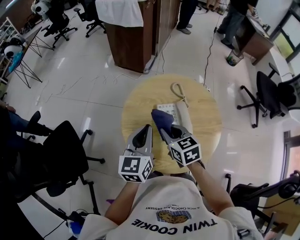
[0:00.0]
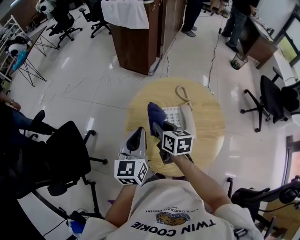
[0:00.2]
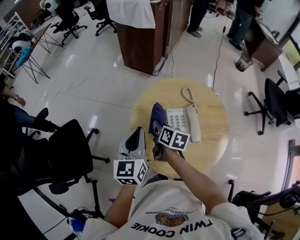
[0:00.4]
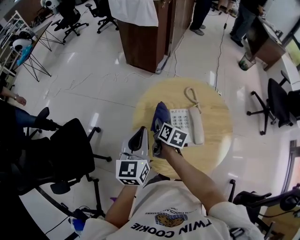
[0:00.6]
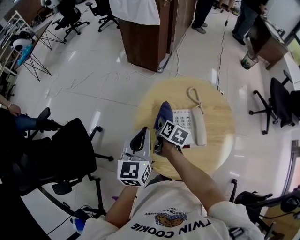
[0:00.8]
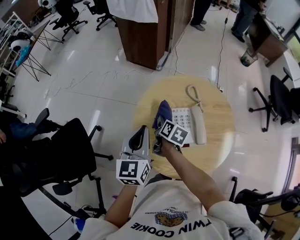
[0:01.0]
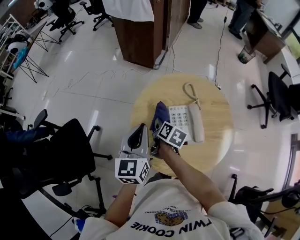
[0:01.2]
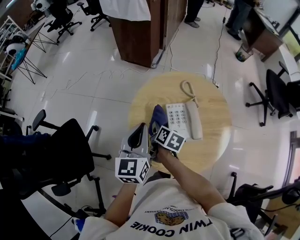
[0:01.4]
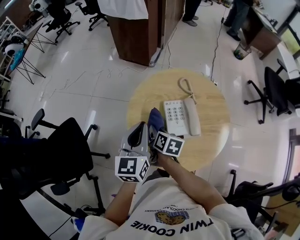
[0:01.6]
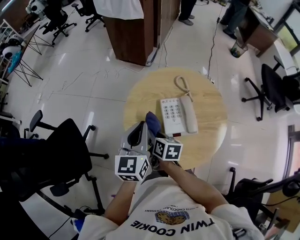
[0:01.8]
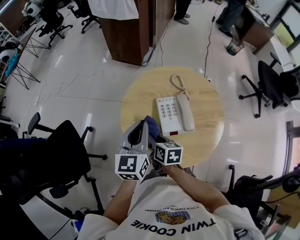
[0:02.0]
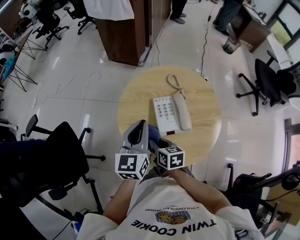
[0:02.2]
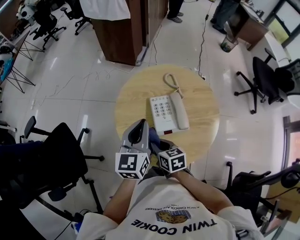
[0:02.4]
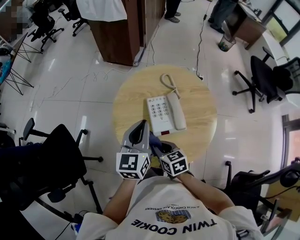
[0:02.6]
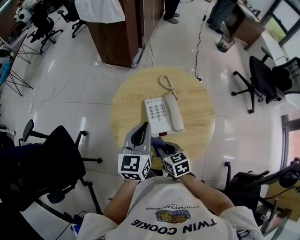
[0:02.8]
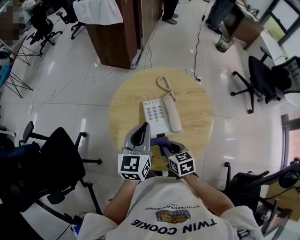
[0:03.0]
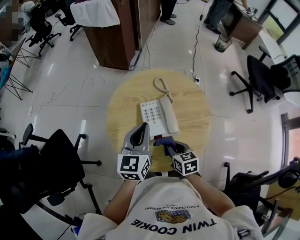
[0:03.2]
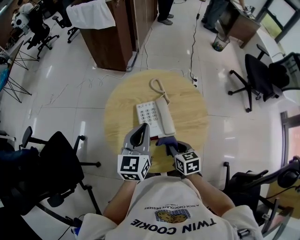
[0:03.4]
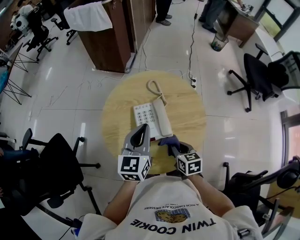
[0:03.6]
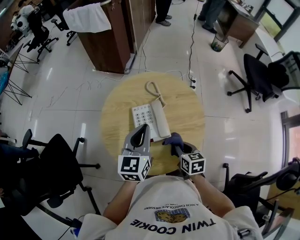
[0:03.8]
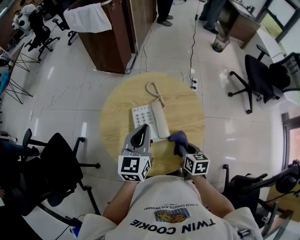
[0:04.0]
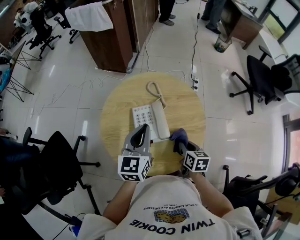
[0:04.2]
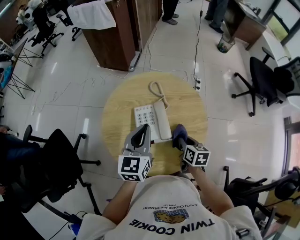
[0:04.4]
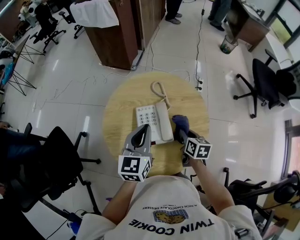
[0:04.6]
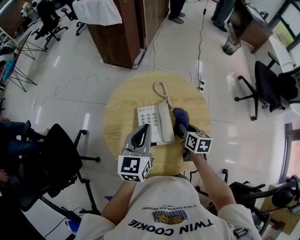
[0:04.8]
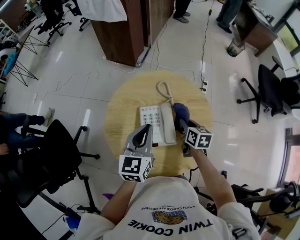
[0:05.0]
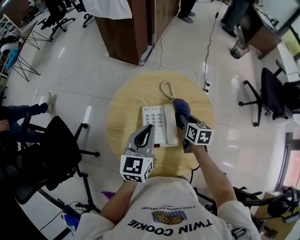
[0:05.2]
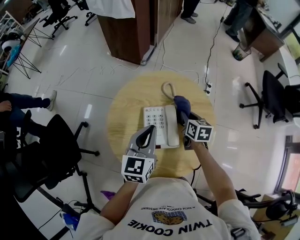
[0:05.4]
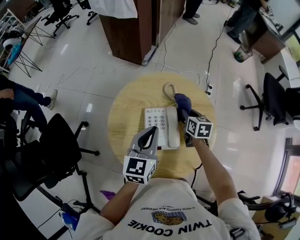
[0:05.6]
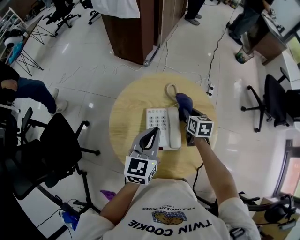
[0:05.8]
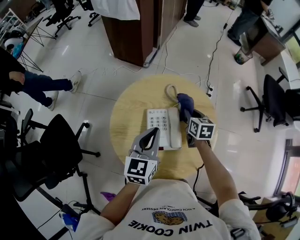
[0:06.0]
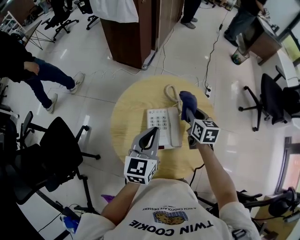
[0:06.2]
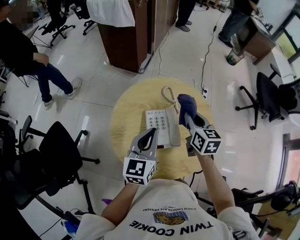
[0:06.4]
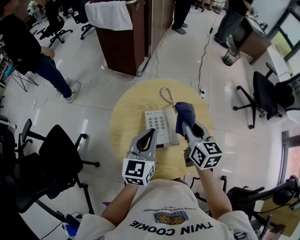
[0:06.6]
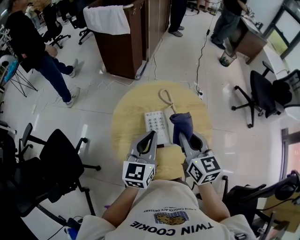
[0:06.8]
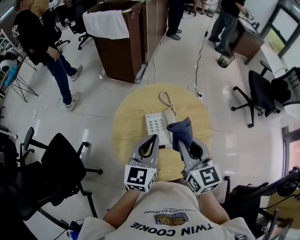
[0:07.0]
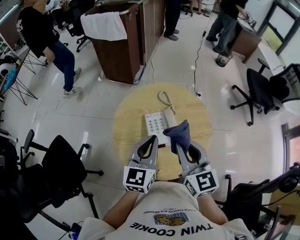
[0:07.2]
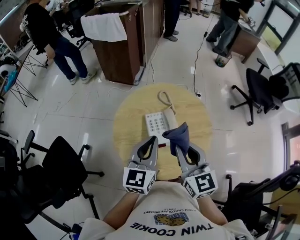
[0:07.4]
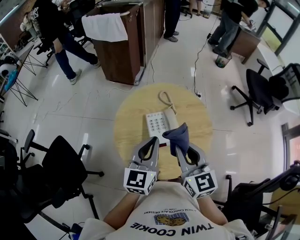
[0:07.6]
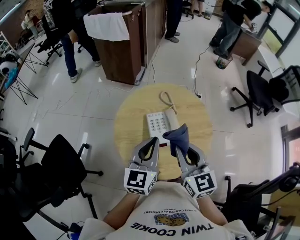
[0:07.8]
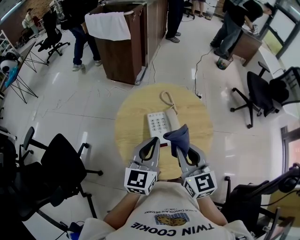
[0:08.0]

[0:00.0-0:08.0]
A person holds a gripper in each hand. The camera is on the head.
0:00.0 to 0:01.6: The right gripper shifts approximately 10 cm downward and to the left, and rolls clockwise, seen from behind, by approximately 40 degrees.
0:01.6 to 0:03.2: The right gripper shifts roughly 20 cm to the right and backward, and rotates approximately 30 degrees; the left gripper moves to the right, about 10 cm.
0:03.2 to 0:04.8: The right gripper goes roughly 15 cm forward and to the right.
0:04.8 to 0:06.4: The right gripper is displaced upward by approximately 10 cm.
0:06.4 to 0:08.0: The right gripper moves backward and upward, about 20 cm, and changes its angle by approximately 20 degrees. Meanwhile the left gripper moves backward, roughly 5 cm.

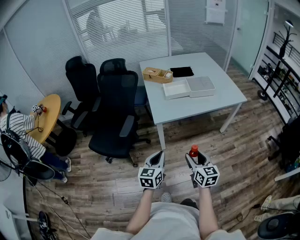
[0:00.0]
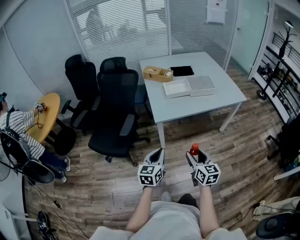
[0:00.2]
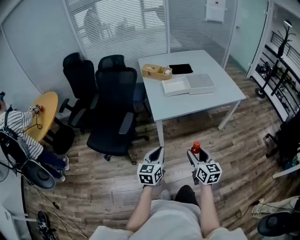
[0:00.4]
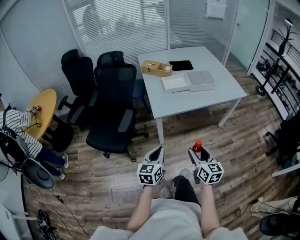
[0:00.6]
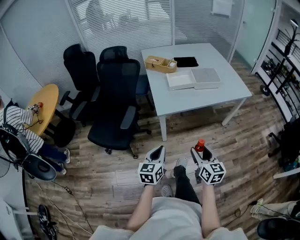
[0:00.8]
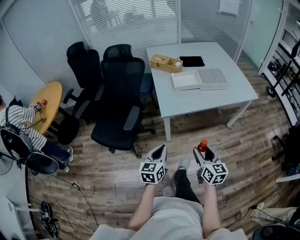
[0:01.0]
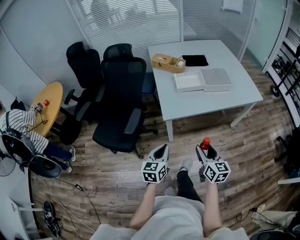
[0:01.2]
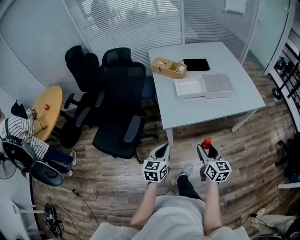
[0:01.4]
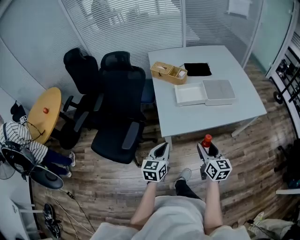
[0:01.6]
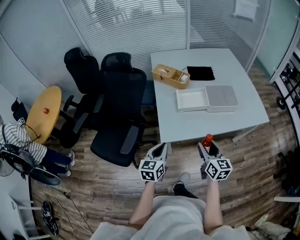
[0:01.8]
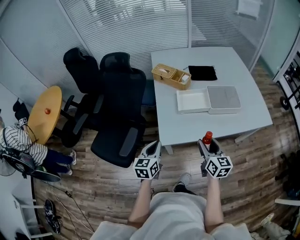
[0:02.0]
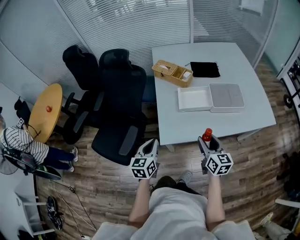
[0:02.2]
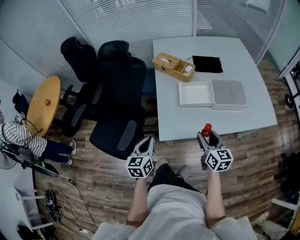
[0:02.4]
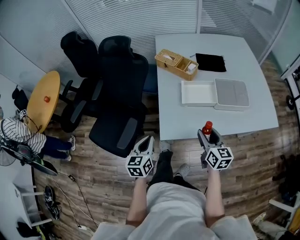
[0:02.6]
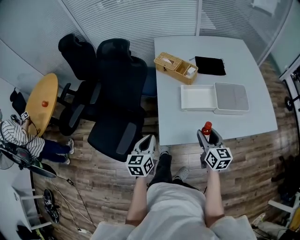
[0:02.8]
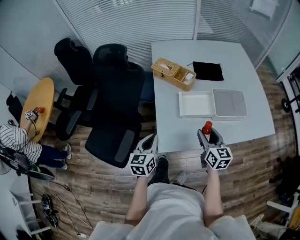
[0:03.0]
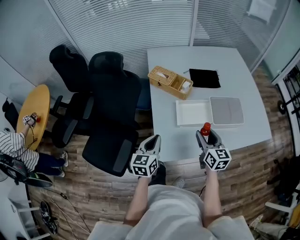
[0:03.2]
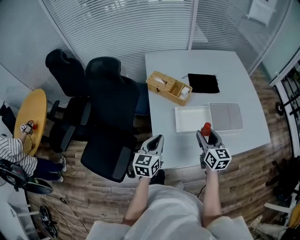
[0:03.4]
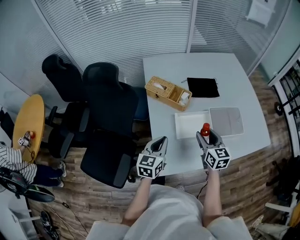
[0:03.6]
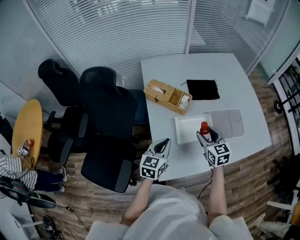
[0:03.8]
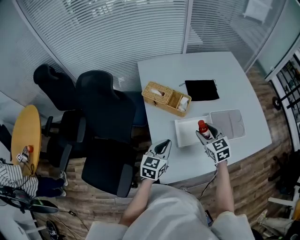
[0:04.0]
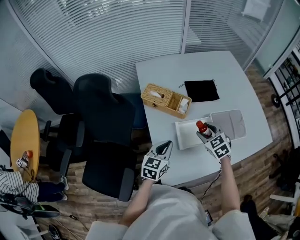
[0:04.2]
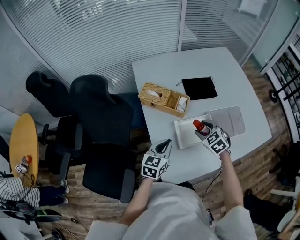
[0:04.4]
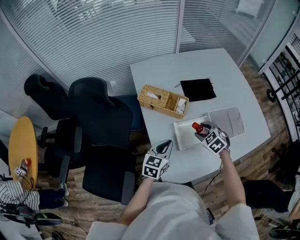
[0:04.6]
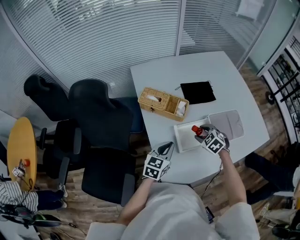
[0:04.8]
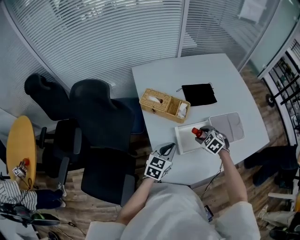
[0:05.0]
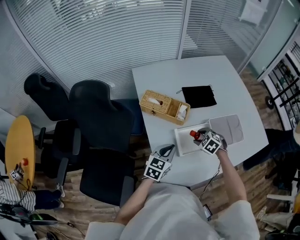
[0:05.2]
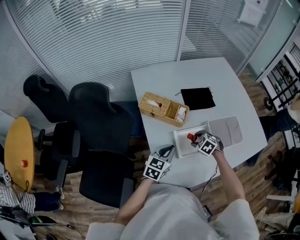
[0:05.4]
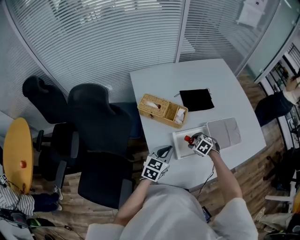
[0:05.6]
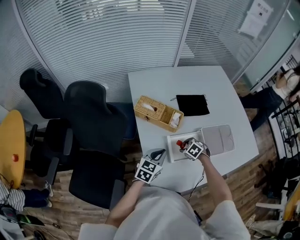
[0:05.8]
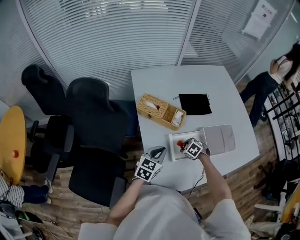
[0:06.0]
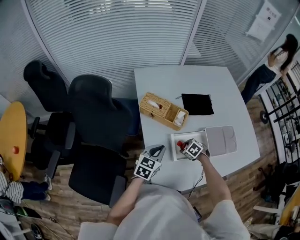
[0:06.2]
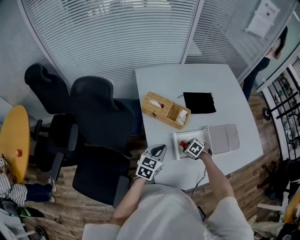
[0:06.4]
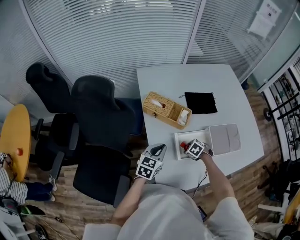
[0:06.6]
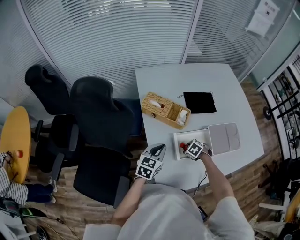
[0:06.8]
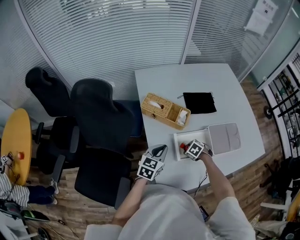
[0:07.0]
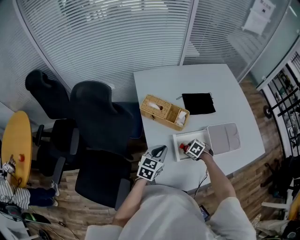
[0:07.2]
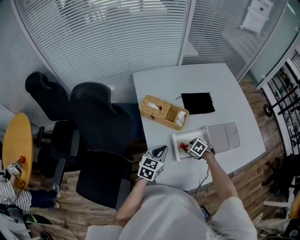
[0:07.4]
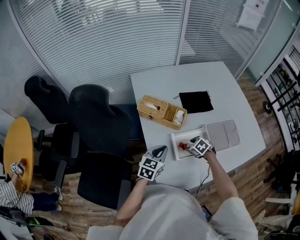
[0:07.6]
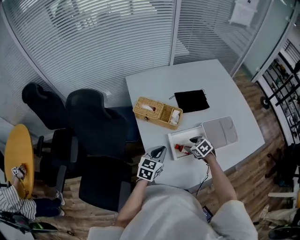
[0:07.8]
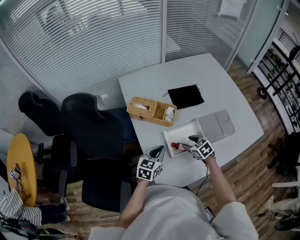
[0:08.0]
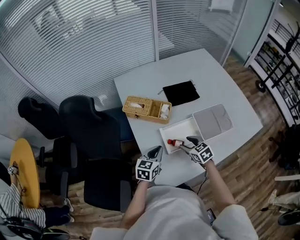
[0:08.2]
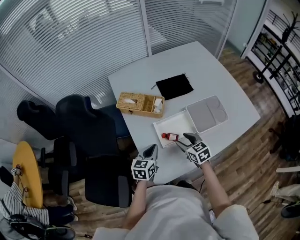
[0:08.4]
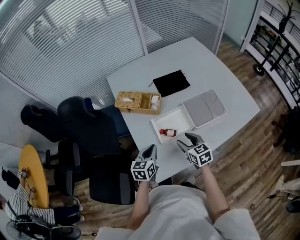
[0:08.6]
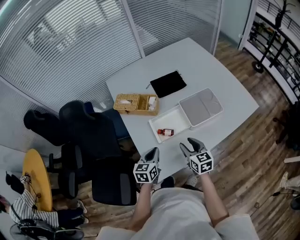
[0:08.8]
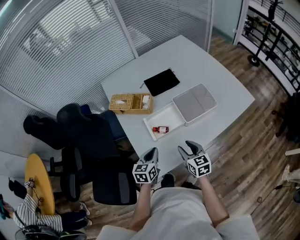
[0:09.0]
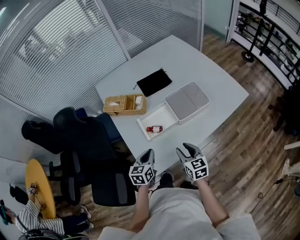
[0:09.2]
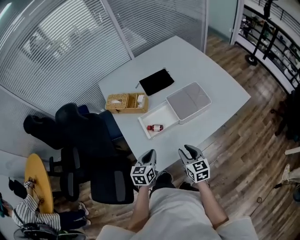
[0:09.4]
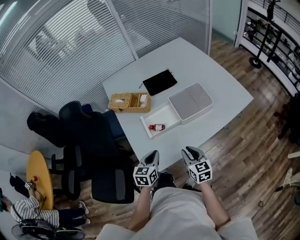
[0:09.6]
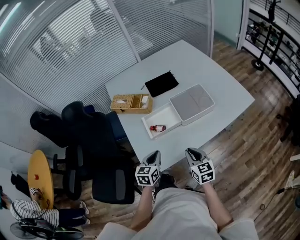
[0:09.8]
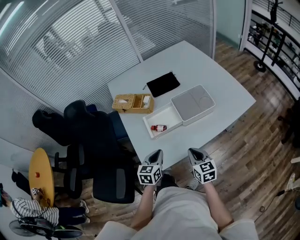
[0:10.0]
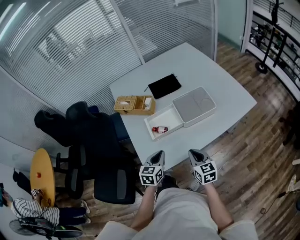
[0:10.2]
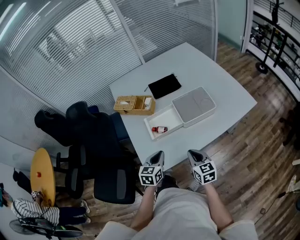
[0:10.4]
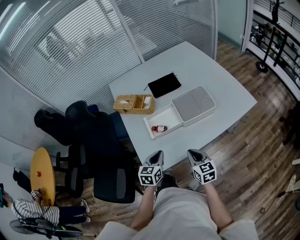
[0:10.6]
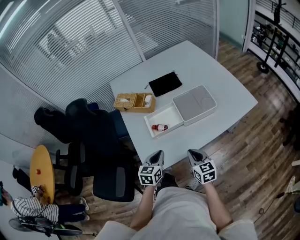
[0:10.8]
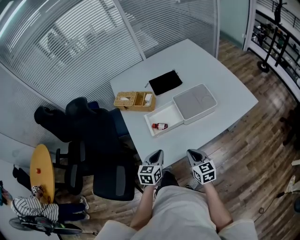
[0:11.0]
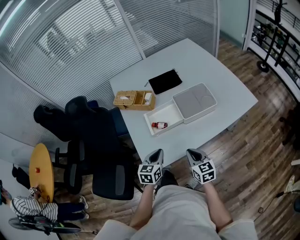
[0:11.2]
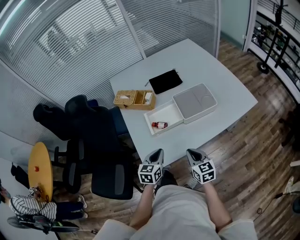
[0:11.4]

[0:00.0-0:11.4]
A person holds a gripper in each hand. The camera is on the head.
0:00.0 to 0:01.4: The two grippers go about 15 cm forward.
0:01.4 to 0:02.8: The two grippers go approximately 20 cm forward.
0:02.8 to 0:04.2: Both grippers move forward, roughly 25 cm. The left gripper turns by about 30 degrees, while the right gripper turns by approximately 40 degrees.
0:04.2 to 0:05.6: The right gripper travels downward by roughly 15 cm, and swivels roughly 30 degrees.
0:05.6 to 0:07.2: The right gripper travels downward by approximately 5 cm.
0:07.2 to 0:08.6: The right gripper travels upward by roughly 15 cm, and tips its fingers upward by some 40 degrees. The left gripper changes place by some 10 cm.
0:08.6 to 0:10.0: The left gripper is displaced to the right and backward by approximately 15 cm, while the right gripper heads backward and to the right, covering roughly 15 cm, and closes its fingers.
0:10.0 to 0:11.4: The grippers stay close to where they were, moving slightly.

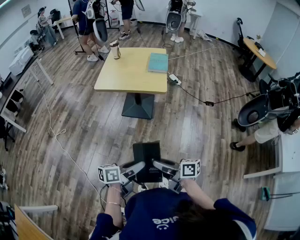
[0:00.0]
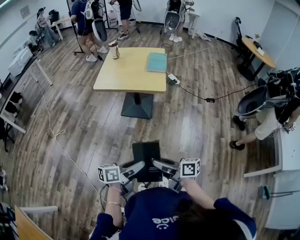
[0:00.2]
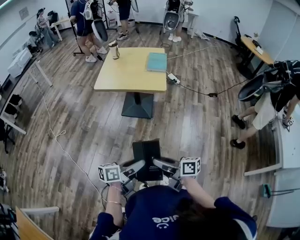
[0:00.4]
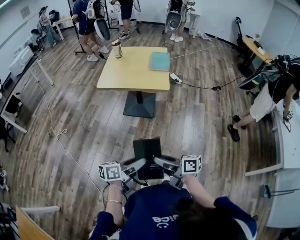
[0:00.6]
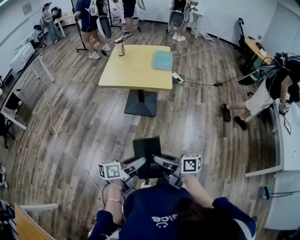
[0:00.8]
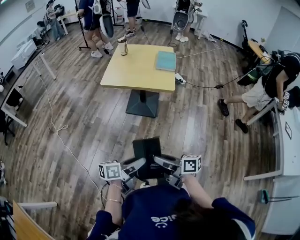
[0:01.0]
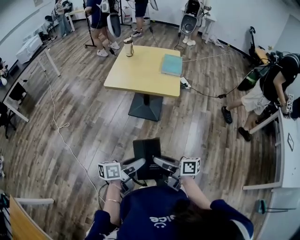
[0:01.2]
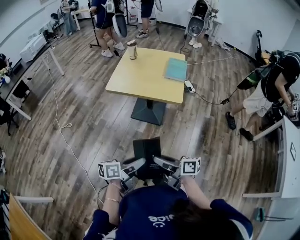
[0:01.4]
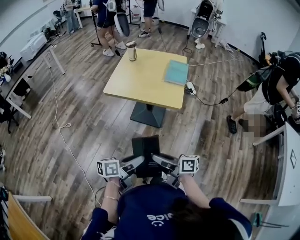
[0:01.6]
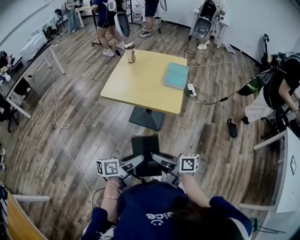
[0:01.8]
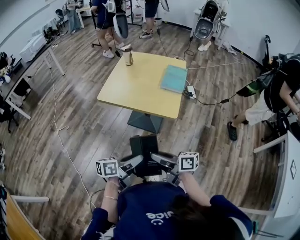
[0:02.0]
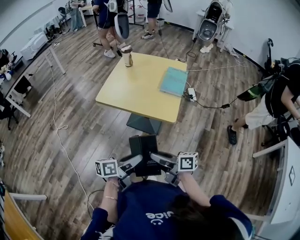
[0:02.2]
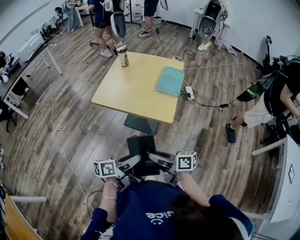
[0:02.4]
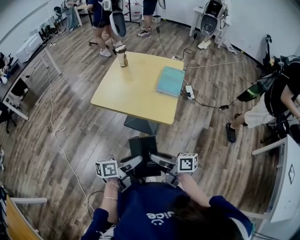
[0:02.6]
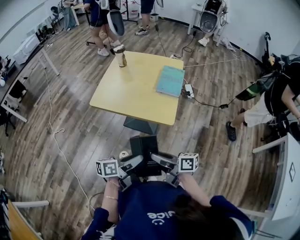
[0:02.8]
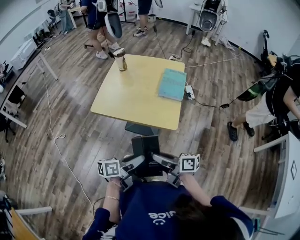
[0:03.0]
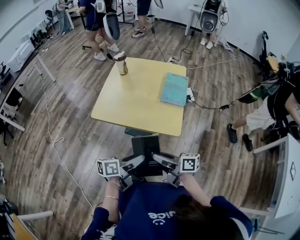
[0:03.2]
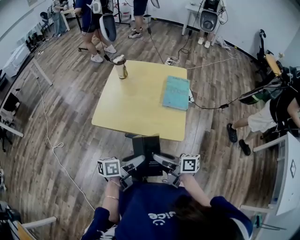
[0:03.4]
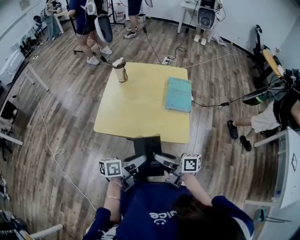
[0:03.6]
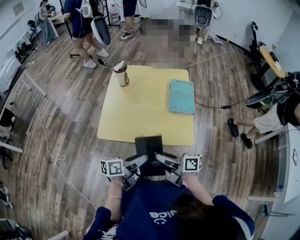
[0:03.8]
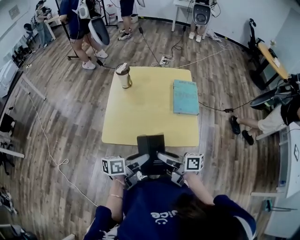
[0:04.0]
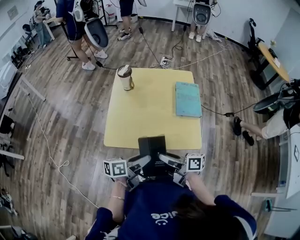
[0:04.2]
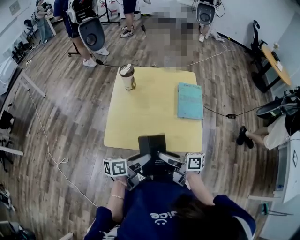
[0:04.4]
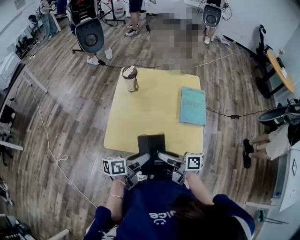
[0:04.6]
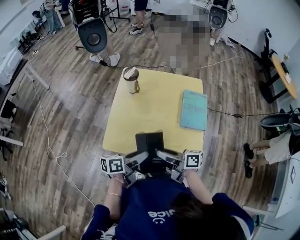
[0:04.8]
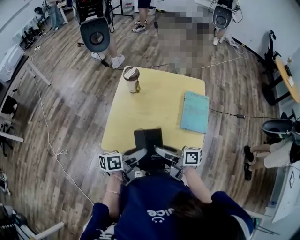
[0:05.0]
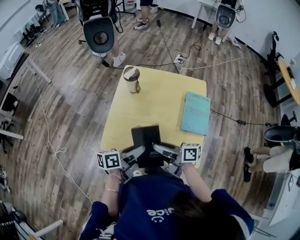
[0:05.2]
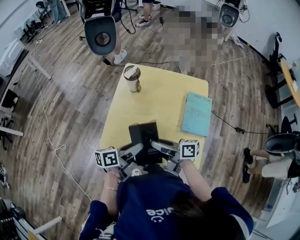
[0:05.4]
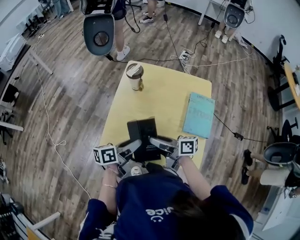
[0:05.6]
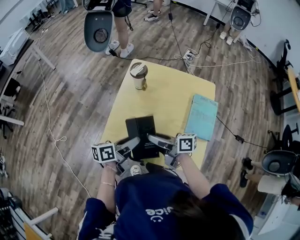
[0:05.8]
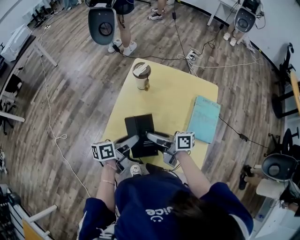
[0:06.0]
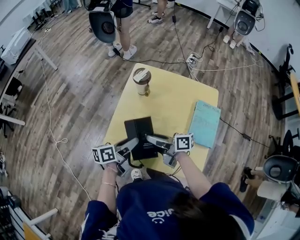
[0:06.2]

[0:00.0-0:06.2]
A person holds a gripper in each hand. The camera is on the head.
0:00.0 to 0:01.6: The grippers both shift forward by approximately 15 cm.
0:01.6 to 0:03.2: The two grippers go some 20 cm forward.
0:03.2 to 0:04.6: Both grippers travel together forward and to the left, some 20 cm.
0:04.6 to 0:06.2: The two grippers go roughly 15 cm forward.
